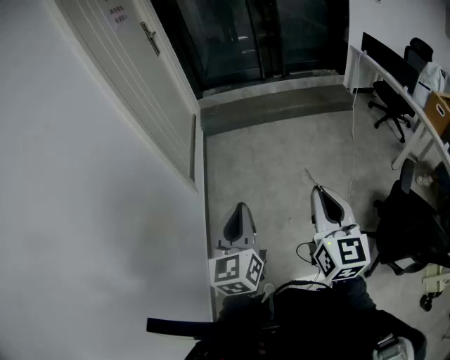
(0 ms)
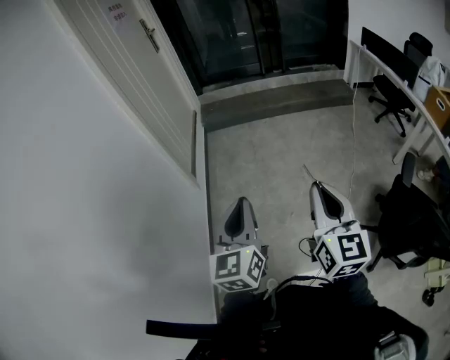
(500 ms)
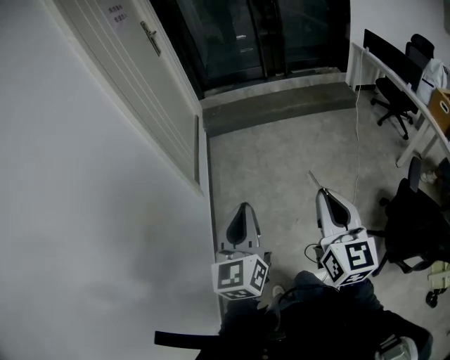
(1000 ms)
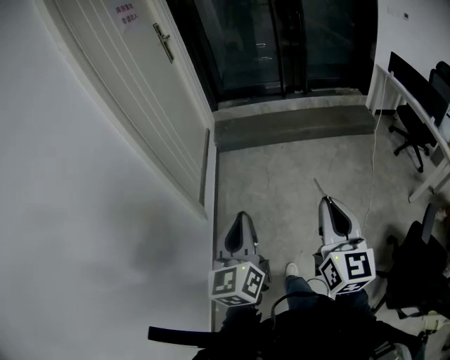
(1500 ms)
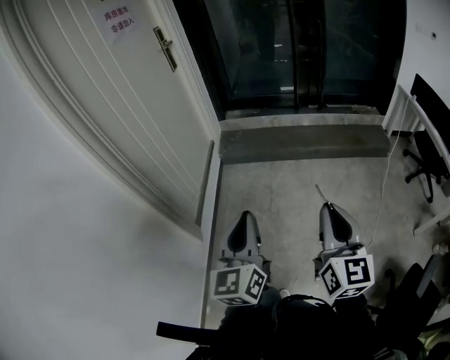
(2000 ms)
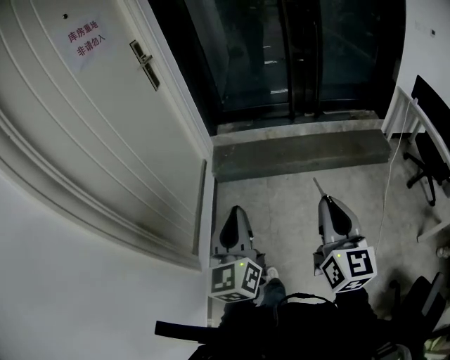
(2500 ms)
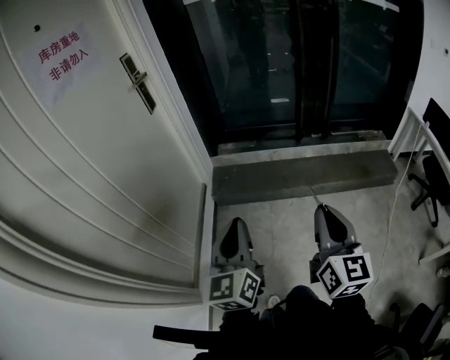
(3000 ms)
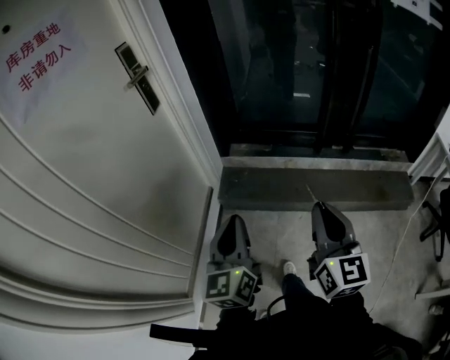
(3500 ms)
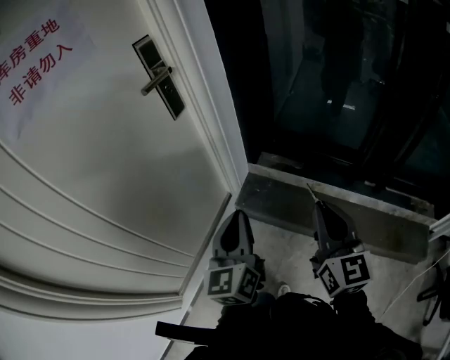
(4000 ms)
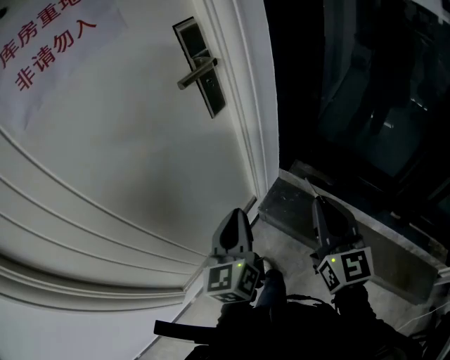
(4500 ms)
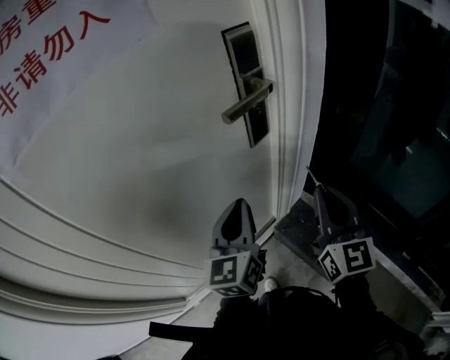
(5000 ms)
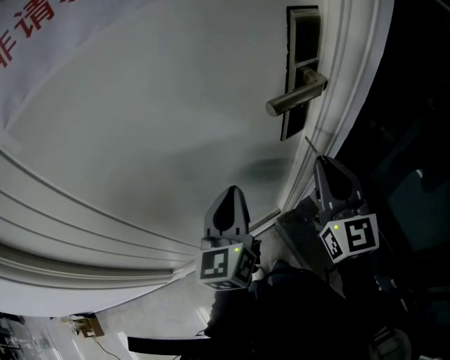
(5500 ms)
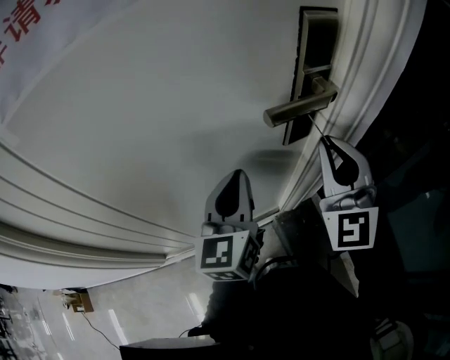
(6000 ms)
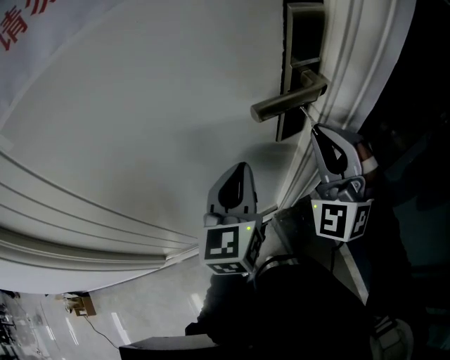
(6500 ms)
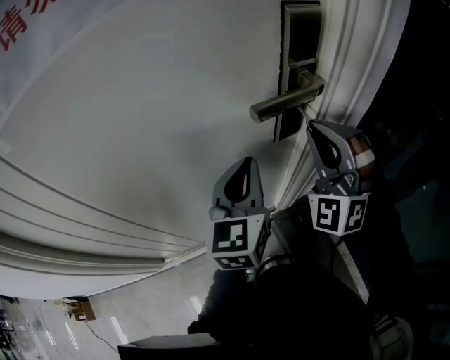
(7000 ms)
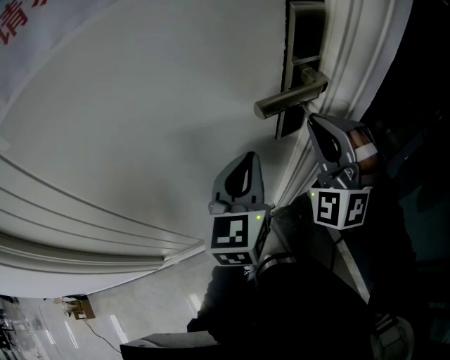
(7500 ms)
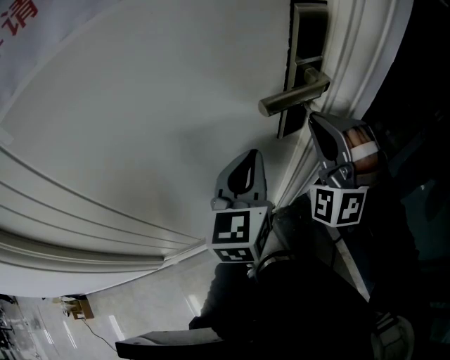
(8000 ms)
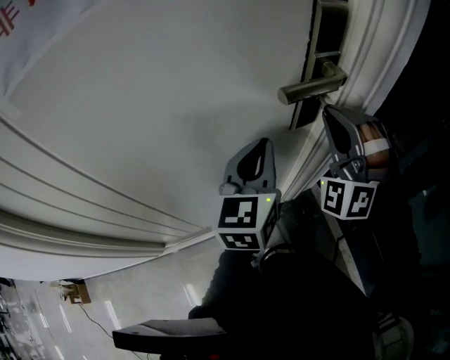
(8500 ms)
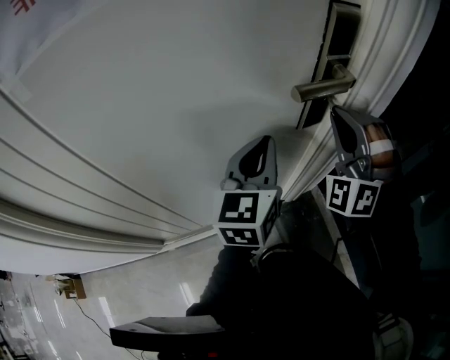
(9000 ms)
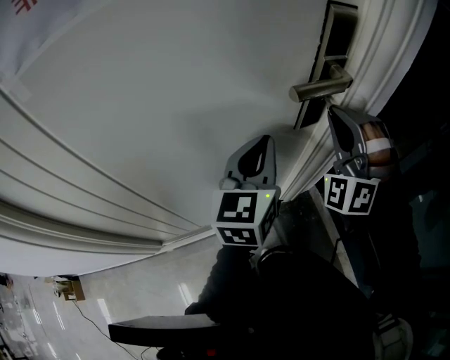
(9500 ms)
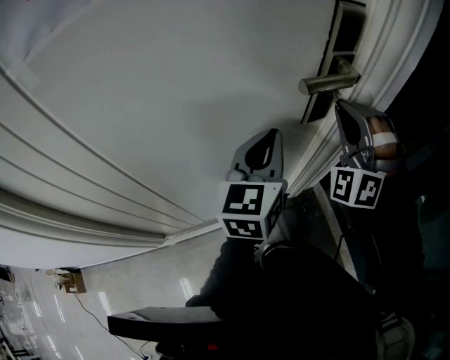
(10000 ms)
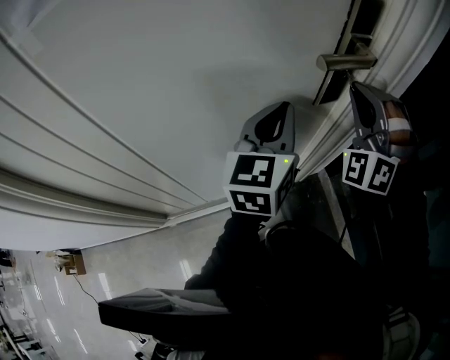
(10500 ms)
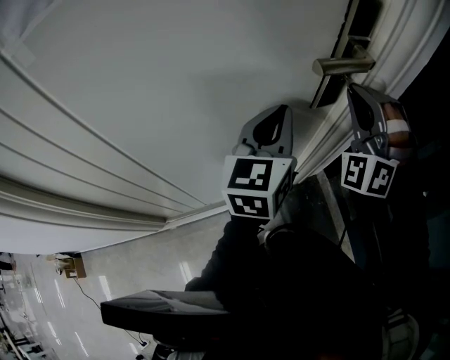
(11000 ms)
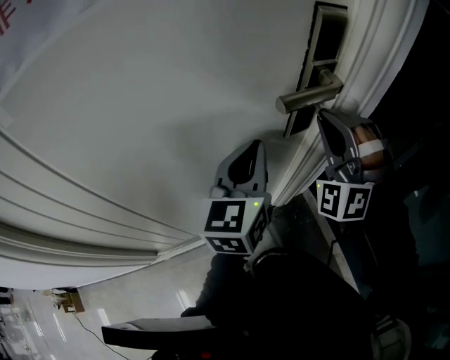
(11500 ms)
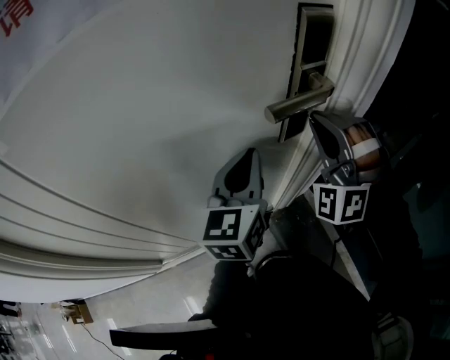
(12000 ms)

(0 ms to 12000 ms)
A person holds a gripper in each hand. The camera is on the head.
0 ms - 2000 ms: The grippers both shift forward by some 40 cm.
2000 ms - 4000 ms: Both grippers are carried roughly 70 cm. The right gripper rotates some 30 degrees. Meanwhile the left gripper rotates approximately 20 degrees.
4000 ms - 6000 ms: The left gripper shifts by some 35 cm, and changes its angle by some 40 degrees; the right gripper changes place by roughly 50 cm, and changes its angle by some 60 degrees.
6000 ms - 8000 ms: The right gripper rolls counterclockwise, seen from behind, by roughly 50 degrees.
8000 ms - 12000 ms: There are only small adjustments of the grippers.

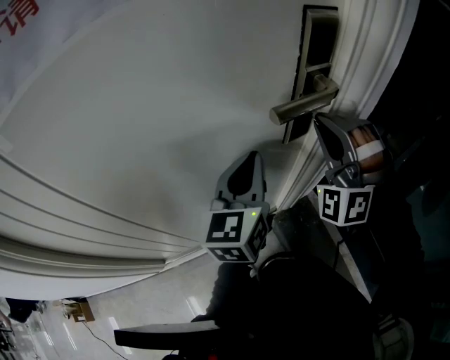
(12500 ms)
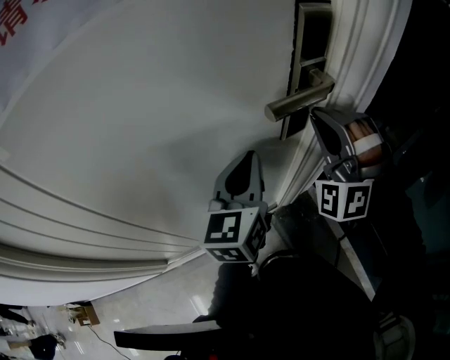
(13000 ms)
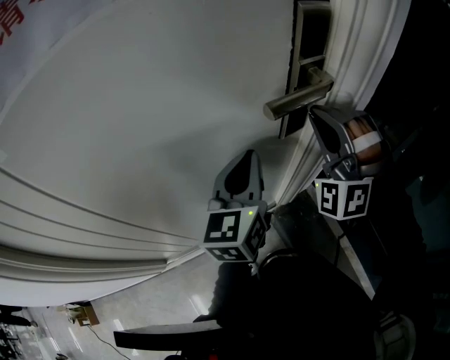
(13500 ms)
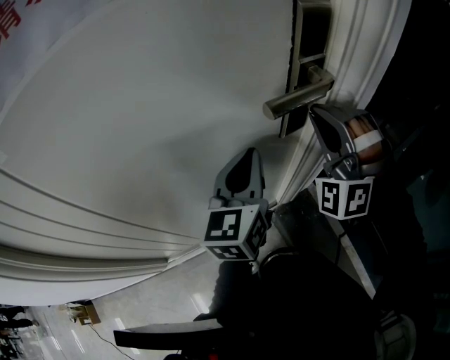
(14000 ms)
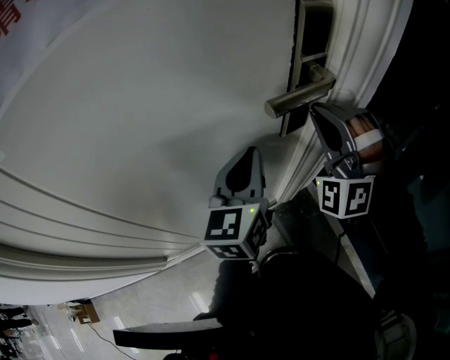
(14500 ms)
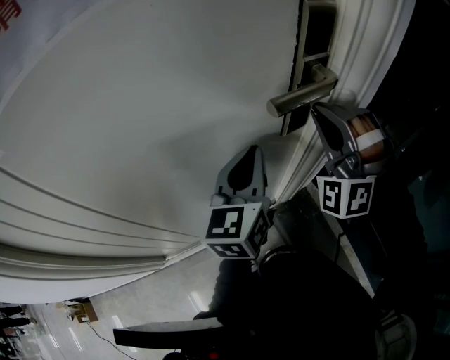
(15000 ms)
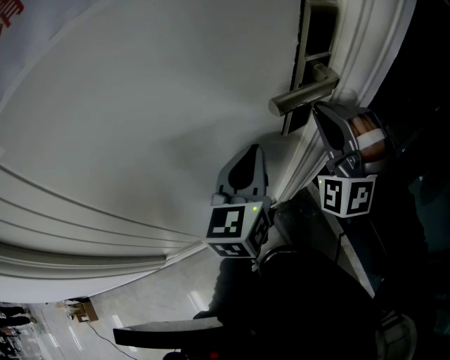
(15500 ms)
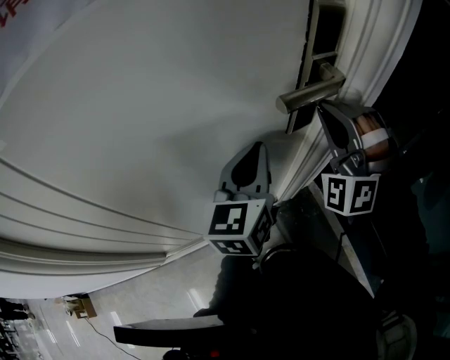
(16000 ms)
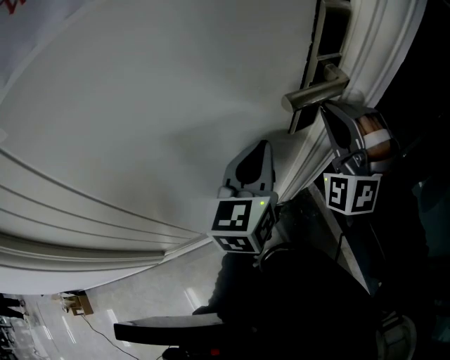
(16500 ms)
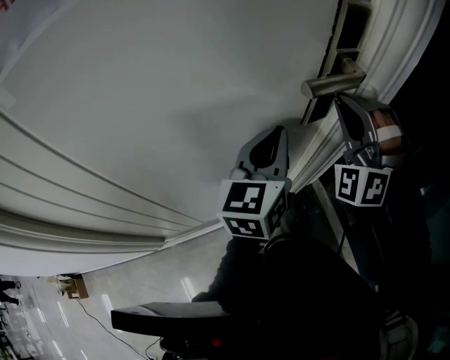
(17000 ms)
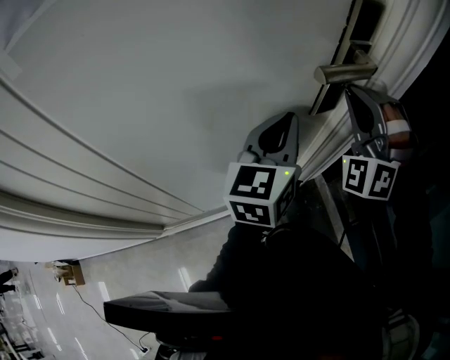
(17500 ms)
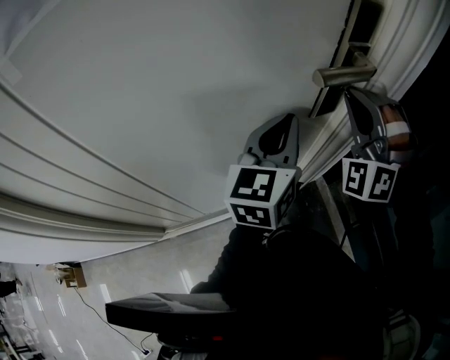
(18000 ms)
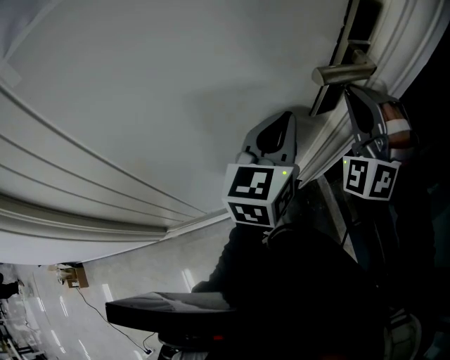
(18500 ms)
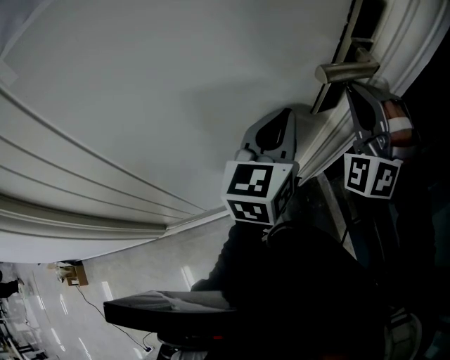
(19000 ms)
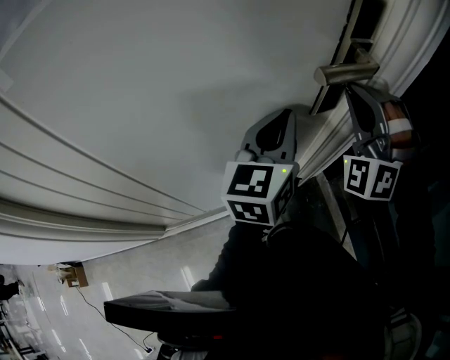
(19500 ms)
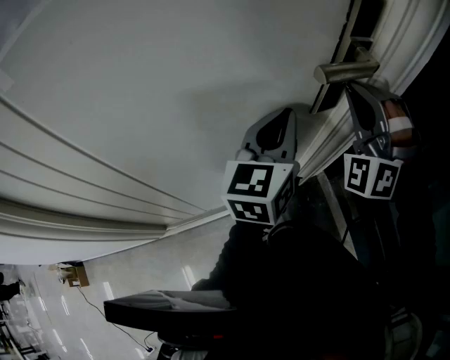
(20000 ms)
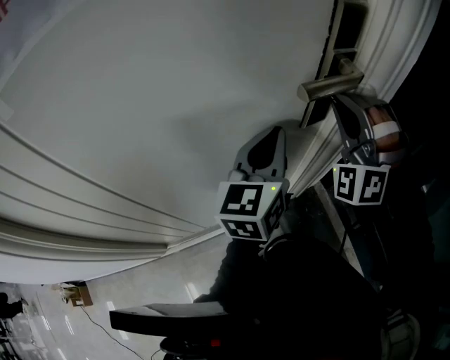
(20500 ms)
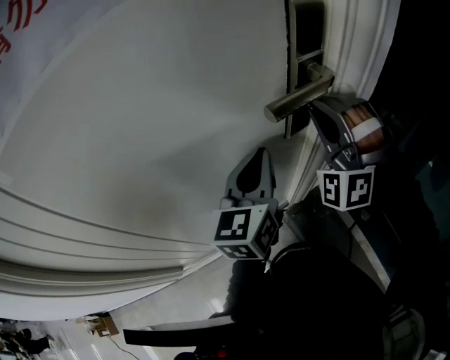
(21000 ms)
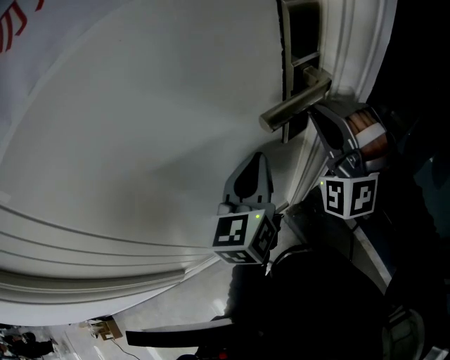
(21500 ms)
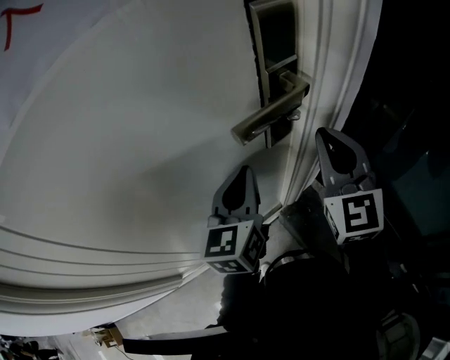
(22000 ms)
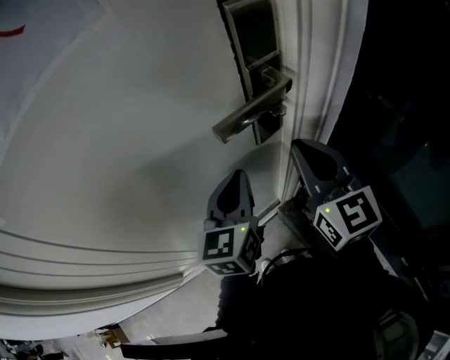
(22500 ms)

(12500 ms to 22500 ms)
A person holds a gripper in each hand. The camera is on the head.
12500 ms - 20500 ms: The two grippers keep their place.
20500 ms - 22500 ms: The right gripper moves approximately 5 cm, and rolls clockwise, seen from behind, by roughly 90 degrees.

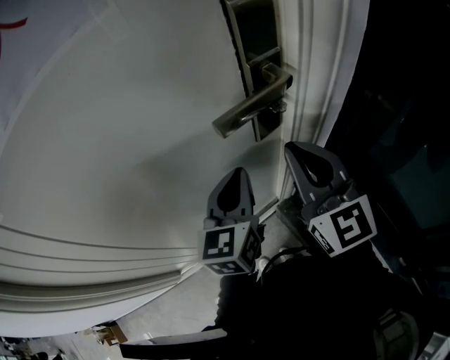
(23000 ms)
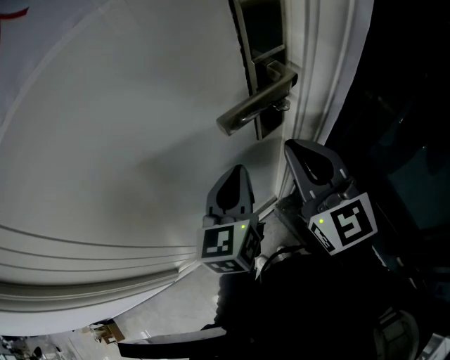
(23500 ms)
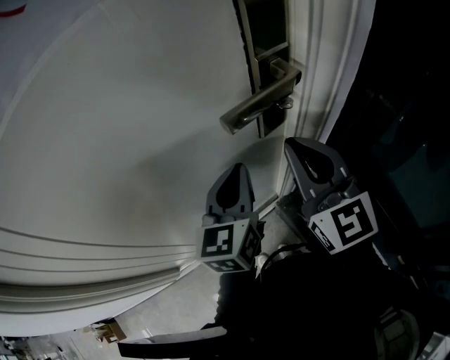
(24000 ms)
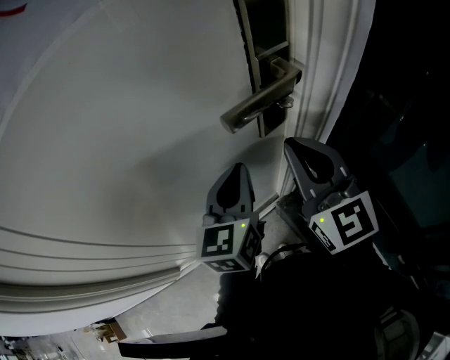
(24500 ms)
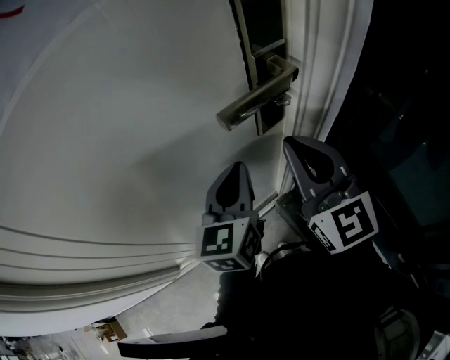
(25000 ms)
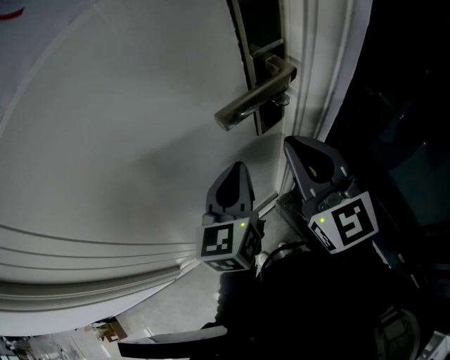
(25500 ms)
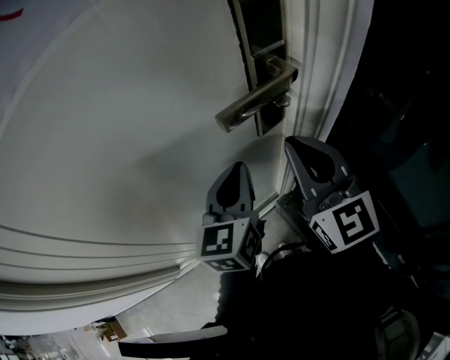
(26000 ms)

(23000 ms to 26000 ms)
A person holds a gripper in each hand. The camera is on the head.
23000 ms - 26000 ms: The two grippers keep their place.

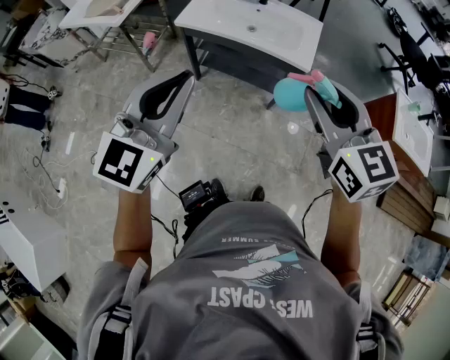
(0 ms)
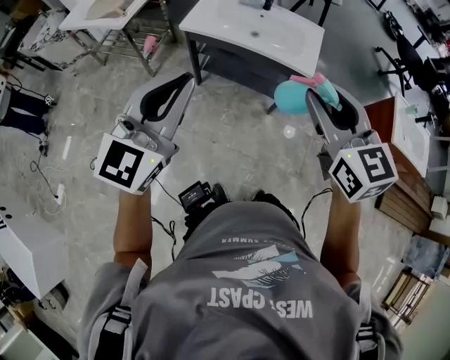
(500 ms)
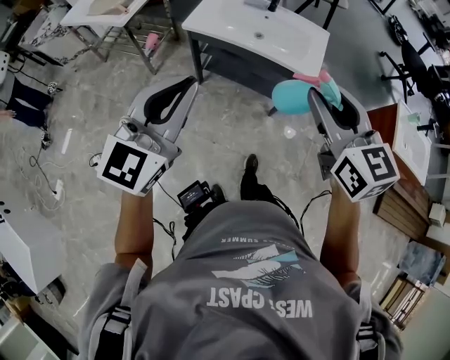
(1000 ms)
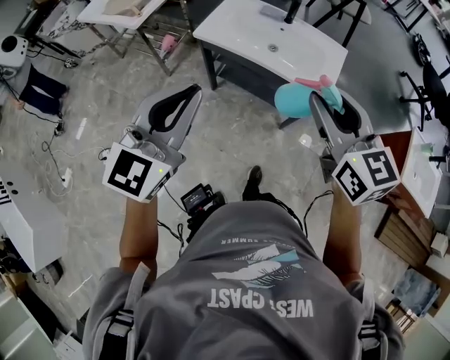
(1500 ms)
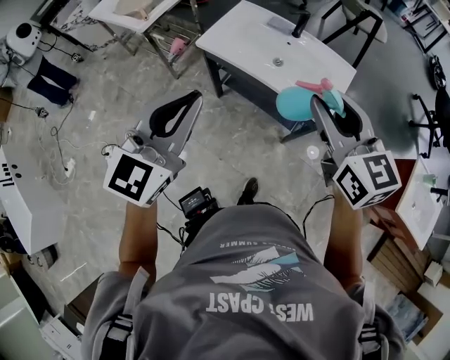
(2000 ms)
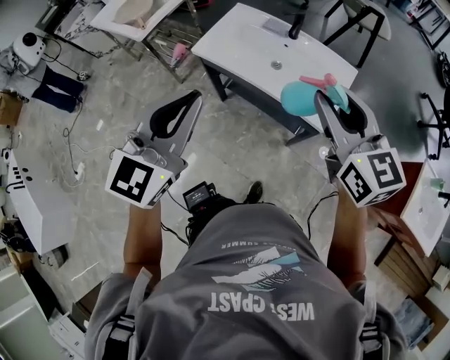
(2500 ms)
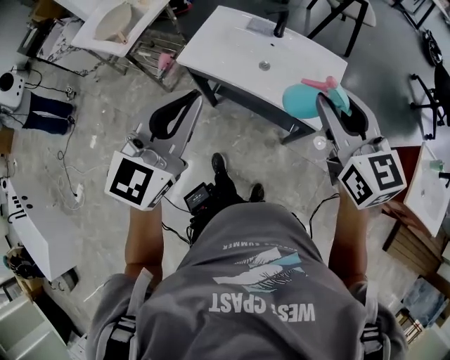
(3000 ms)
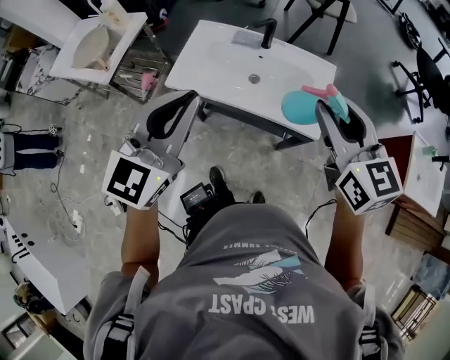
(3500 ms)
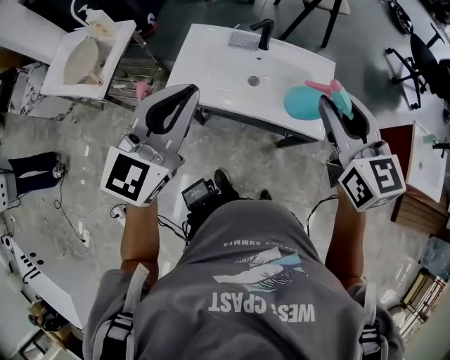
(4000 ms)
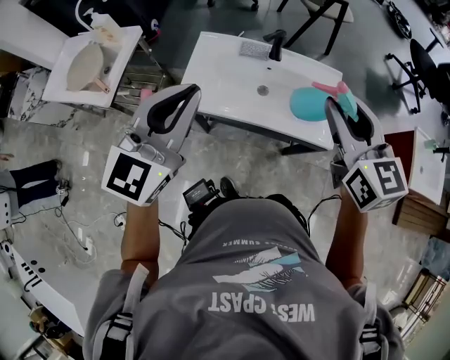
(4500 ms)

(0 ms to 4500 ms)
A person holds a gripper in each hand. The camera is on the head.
0 ms - 2000 ms: The two grippers go about 20 cm forward.
2000 ms - 4500 ms: Both grippers travel together forward, roughly 20 cm. The right gripper turns by roughly 20 degrees.
